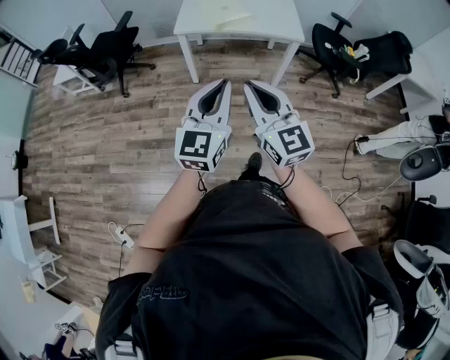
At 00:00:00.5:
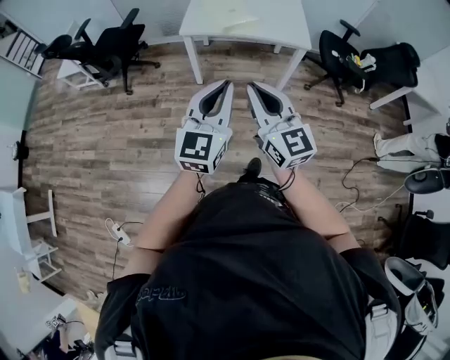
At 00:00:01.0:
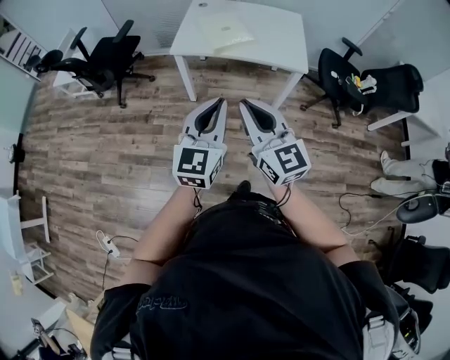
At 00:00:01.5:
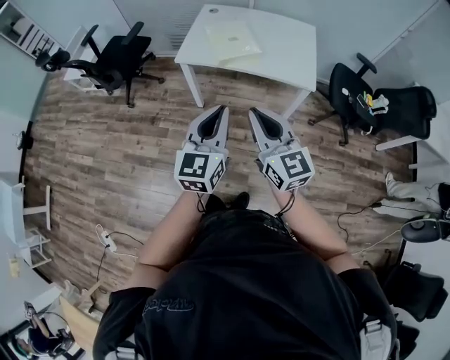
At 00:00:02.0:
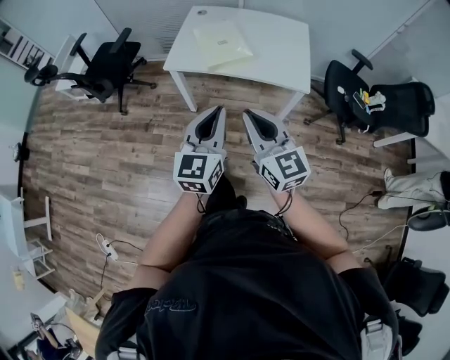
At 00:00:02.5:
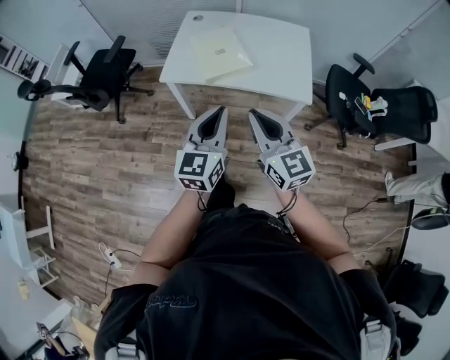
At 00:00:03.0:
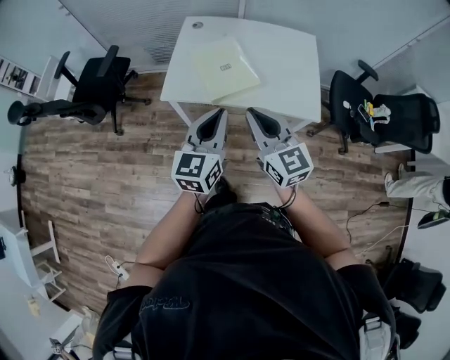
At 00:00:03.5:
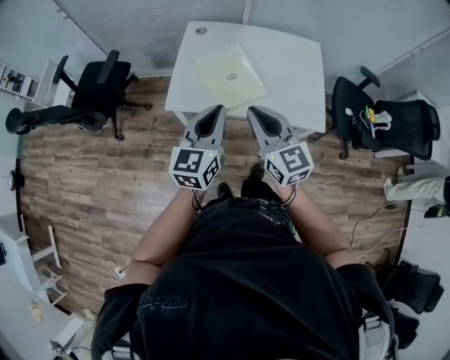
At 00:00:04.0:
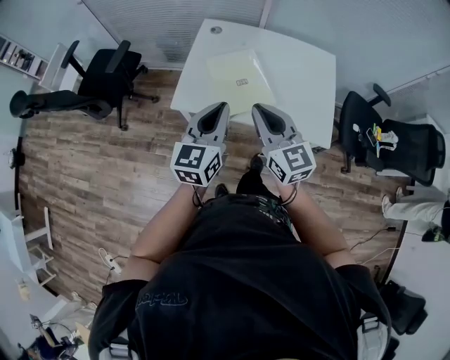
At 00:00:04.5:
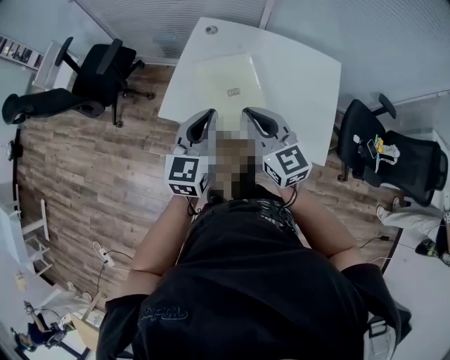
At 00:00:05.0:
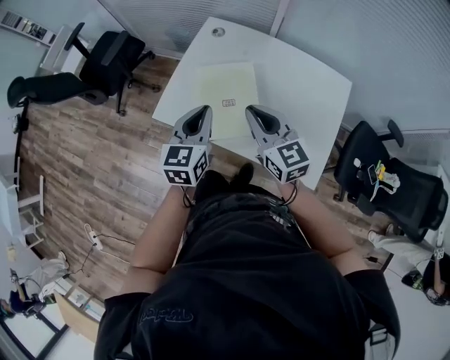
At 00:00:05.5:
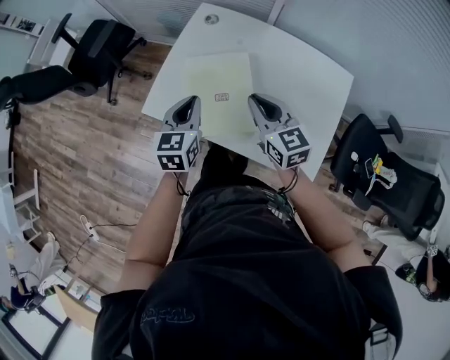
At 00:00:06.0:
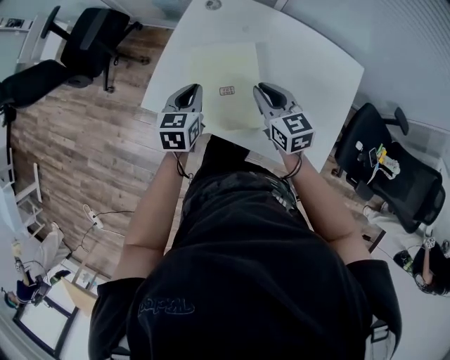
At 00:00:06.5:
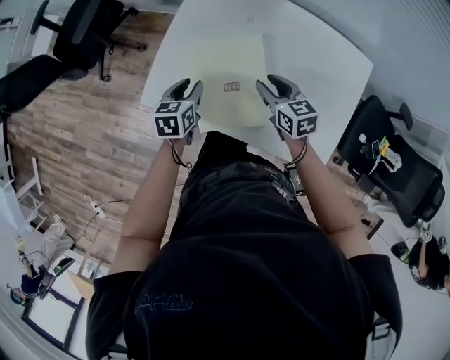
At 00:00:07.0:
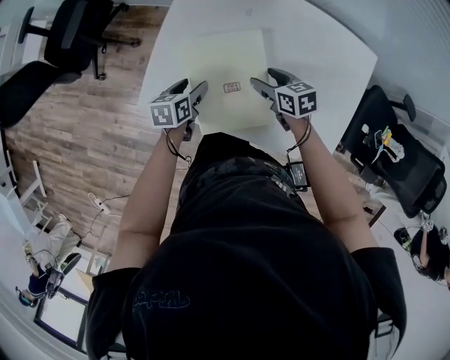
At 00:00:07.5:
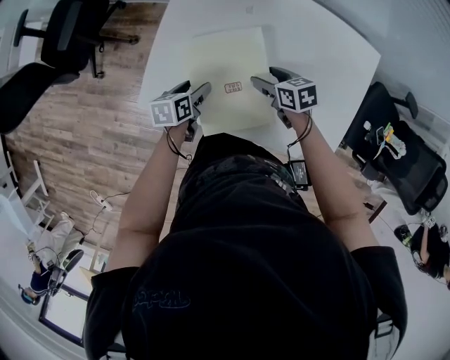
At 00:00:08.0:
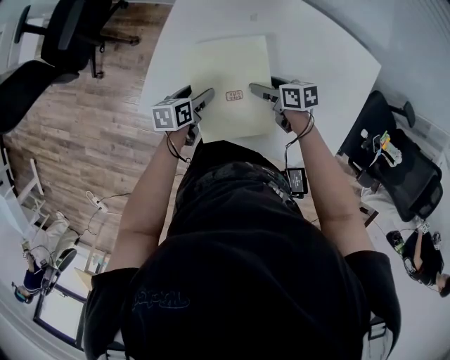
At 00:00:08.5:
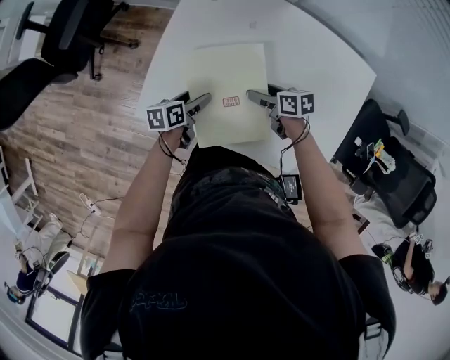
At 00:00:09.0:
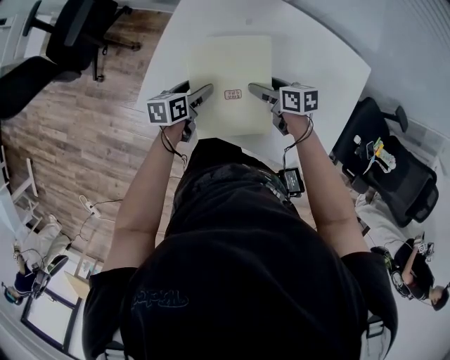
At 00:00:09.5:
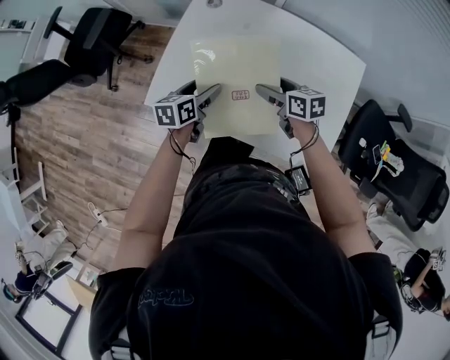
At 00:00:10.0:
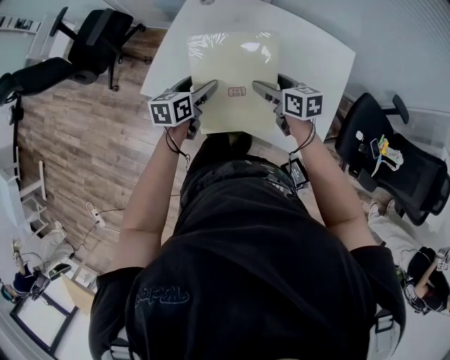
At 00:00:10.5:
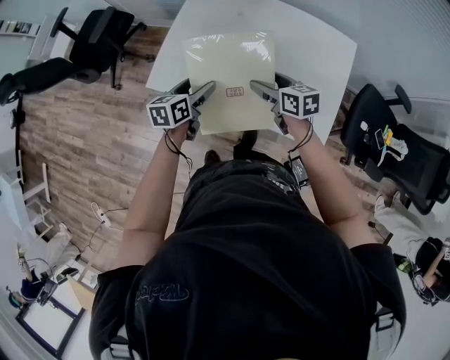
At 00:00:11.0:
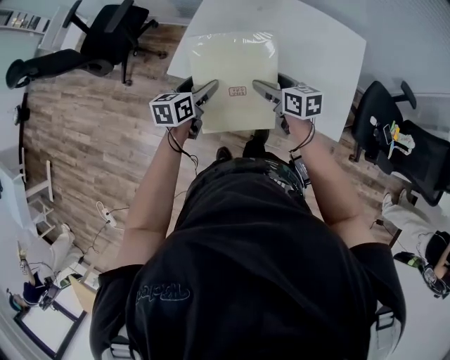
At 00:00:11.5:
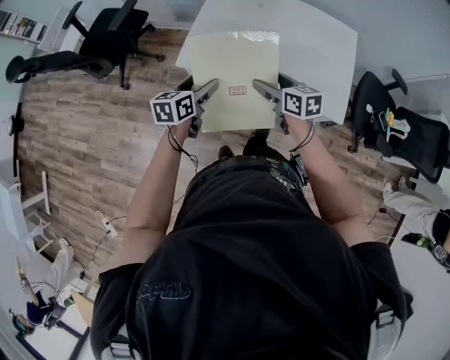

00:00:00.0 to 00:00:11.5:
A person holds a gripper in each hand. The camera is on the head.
00:00:00.0 to 00:00:02.0: The two grippers go some 30 cm forward and to the right.
00:00:02.0 to 00:00:04.0: The two grippers go approximately 30 cm forward.
00:00:04.0 to 00:00:06.0: The right gripper goes about 30 cm forward, downward and to the right, and rotates approximately 30 degrees. Meanwhile the left gripper moves downward and forward, approximately 30 cm, and turns by roughly 30 degrees.
00:00:06.0 to 00:00:07.5: The grippers both shift downward by roughly 15 cm. The left gripper rotates about 30 degrees, and opens. Meanwhile the right gripper rotates roughly 30 degrees, and opens up.
00:00:07.5 to 00:00:09.5: The two grippers go some 10 cm upward.
00:00:09.5 to 00:00:11.5: The grippers both shift backward and to the left by some 25 cm.

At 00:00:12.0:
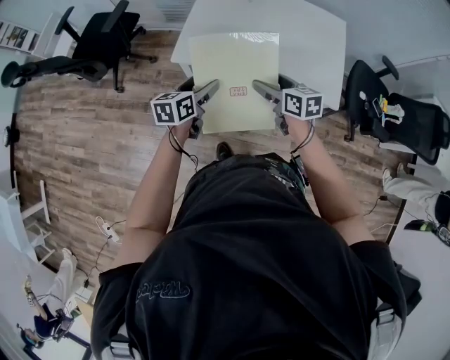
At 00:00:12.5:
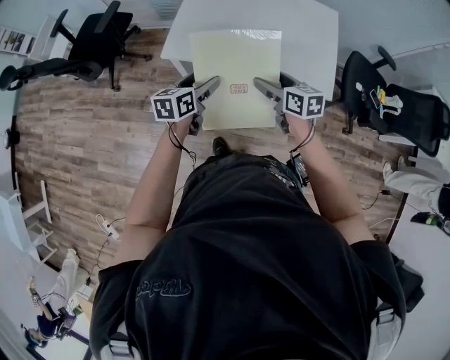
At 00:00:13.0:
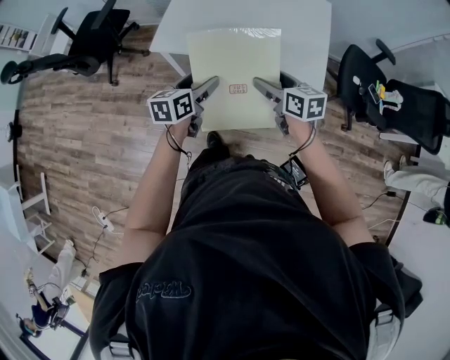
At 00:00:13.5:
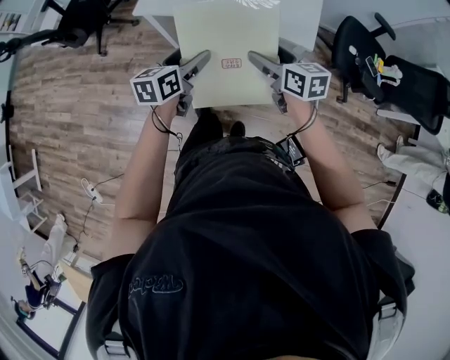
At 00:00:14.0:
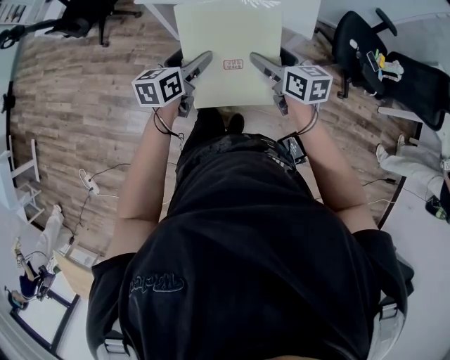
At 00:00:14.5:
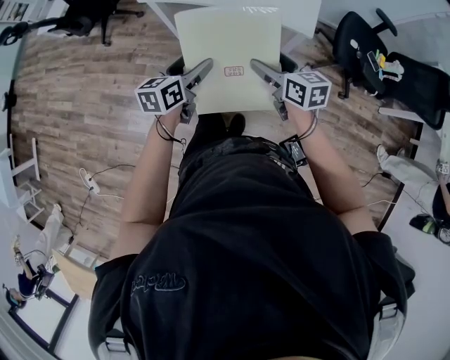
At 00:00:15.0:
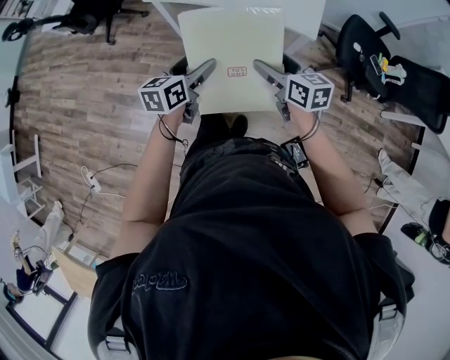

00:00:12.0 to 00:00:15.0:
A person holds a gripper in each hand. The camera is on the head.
00:00:12.0 to 00:00:13.5: Both grippers move to the right and backward, approximately 20 cm.
00:00:13.5 to 00:00:15.0: Both grippers travel together backward, some 10 cm.

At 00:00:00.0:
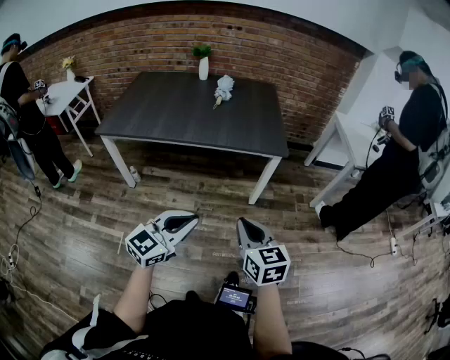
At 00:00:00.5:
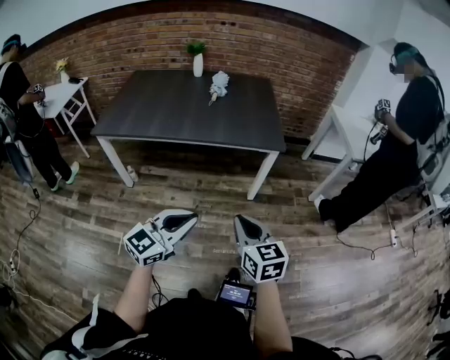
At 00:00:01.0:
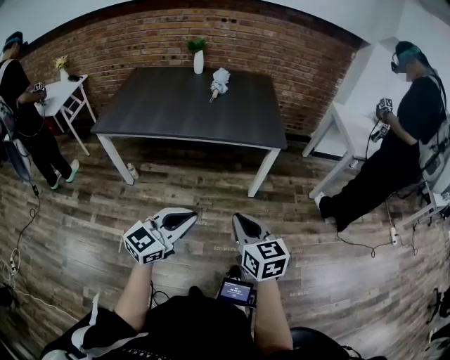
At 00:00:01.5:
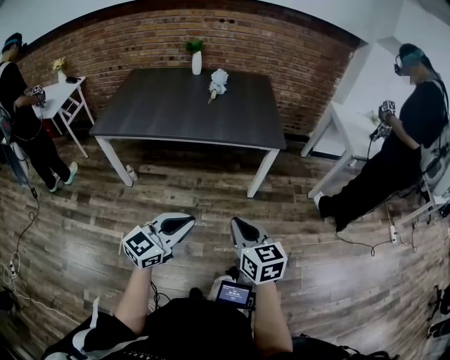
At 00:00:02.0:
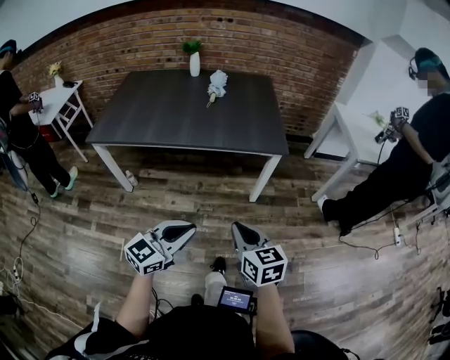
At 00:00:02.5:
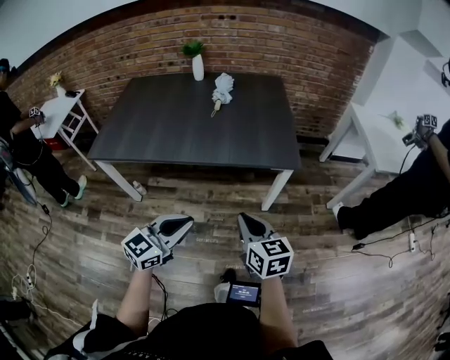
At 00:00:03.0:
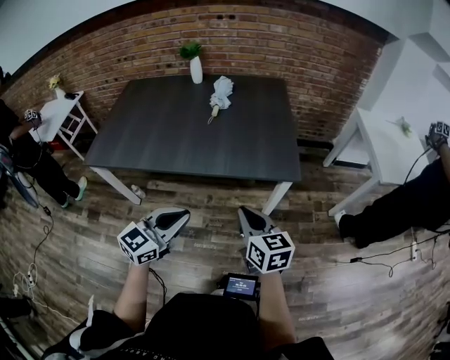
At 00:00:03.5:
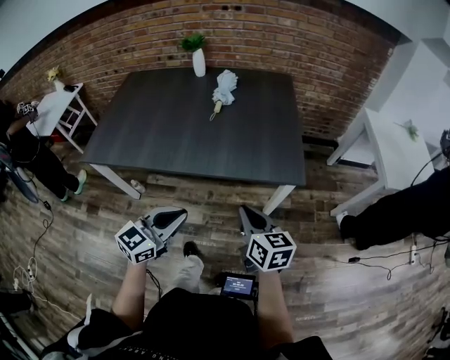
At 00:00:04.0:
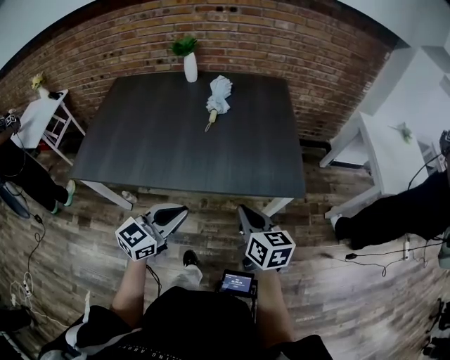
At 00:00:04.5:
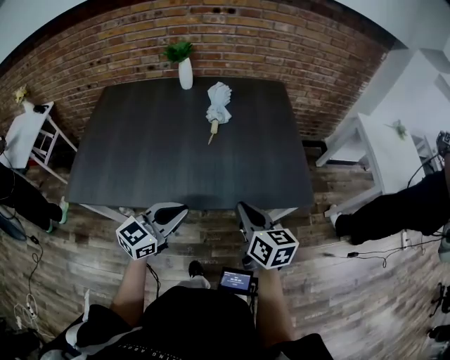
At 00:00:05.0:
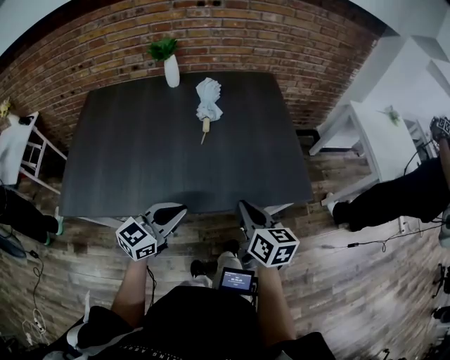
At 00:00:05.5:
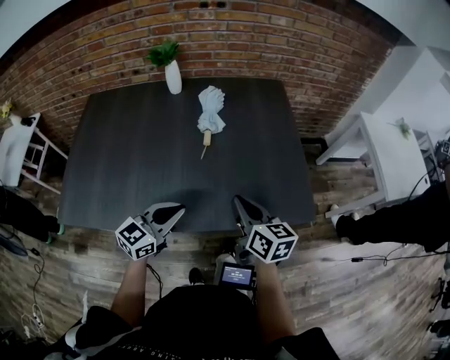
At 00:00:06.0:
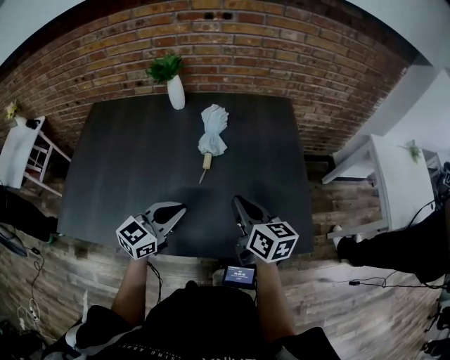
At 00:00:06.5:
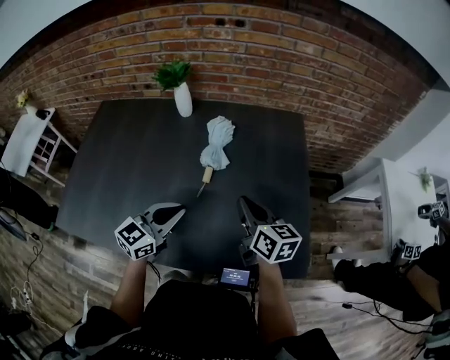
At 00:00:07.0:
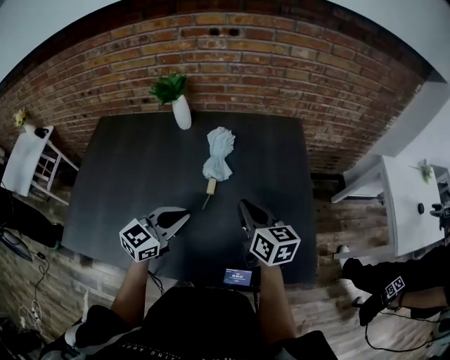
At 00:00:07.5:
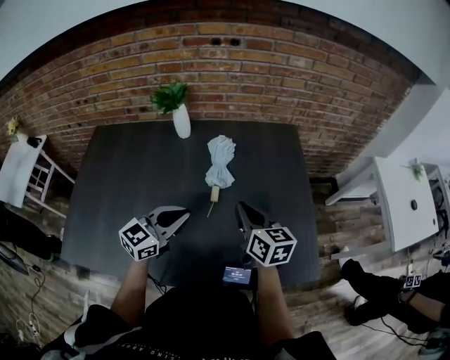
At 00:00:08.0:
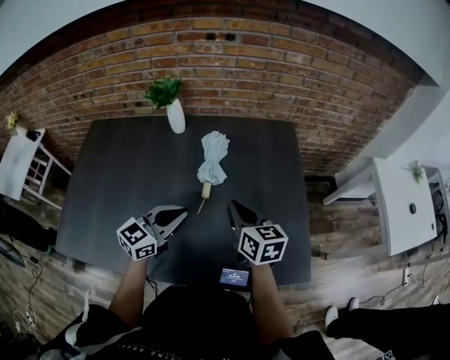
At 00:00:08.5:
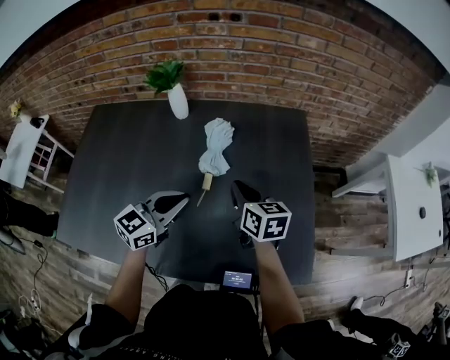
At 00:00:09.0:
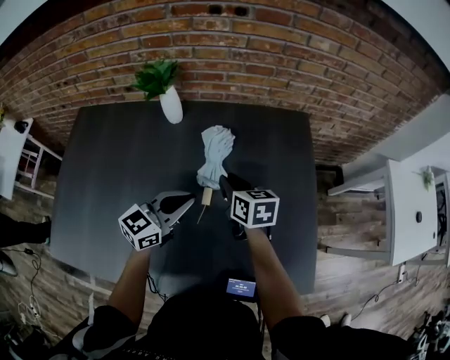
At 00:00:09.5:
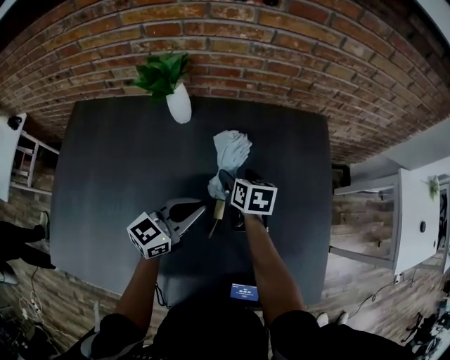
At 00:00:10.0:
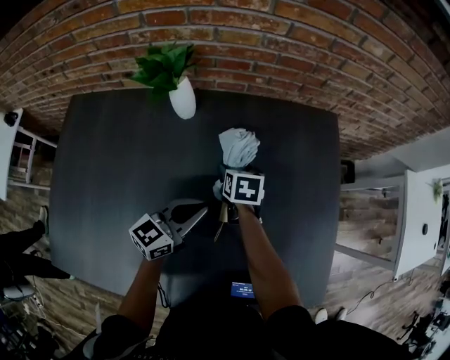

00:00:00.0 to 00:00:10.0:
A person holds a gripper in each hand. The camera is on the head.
00:00:00.0 to 00:00:02.0: The left gripper ends up about 5 cm from where it was. The right gripper ends up some 5 cm from where it was.
00:00:02.0 to 00:00:04.0: Both grippers move forward, some 35 cm.
00:00:04.0 to 00:00:06.0: Both grippers move forward, approximately 25 cm.
00:00:06.0 to 00:00:08.0: The grippers both shift forward by approximately 10 cm.
00:00:08.0 to 00:00:10.0: The right gripper shifts roughly 35 cm forward, downward and to the left, tips its fingers downward by about 30 degrees, and opens. The left gripper is displaced forward and downward by roughly 20 cm.

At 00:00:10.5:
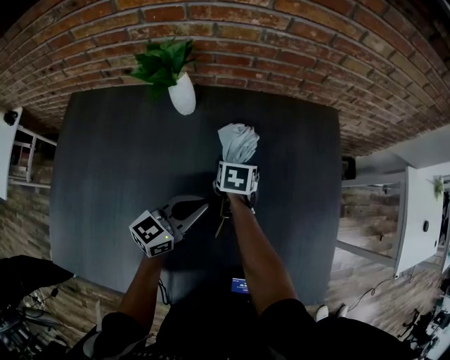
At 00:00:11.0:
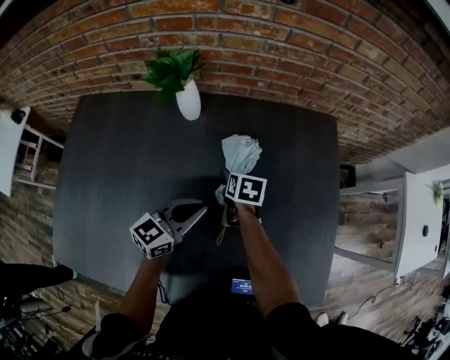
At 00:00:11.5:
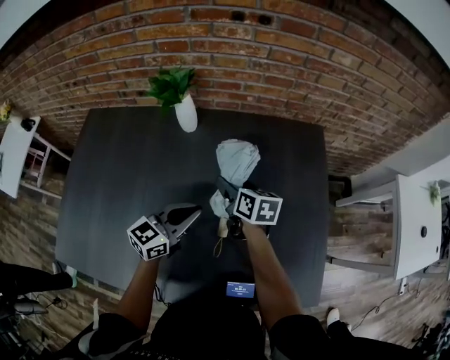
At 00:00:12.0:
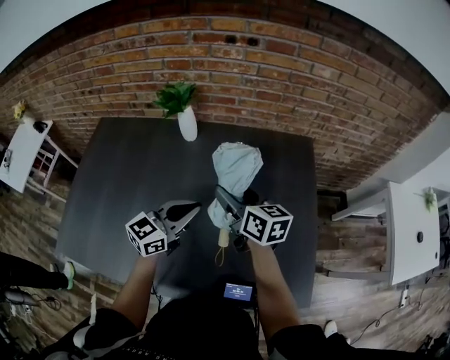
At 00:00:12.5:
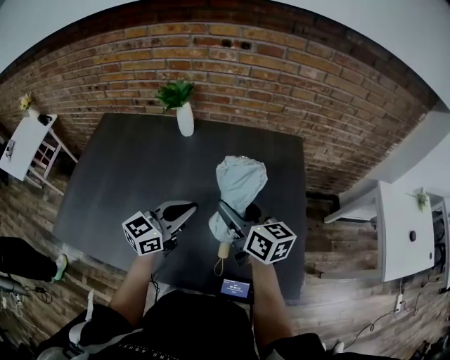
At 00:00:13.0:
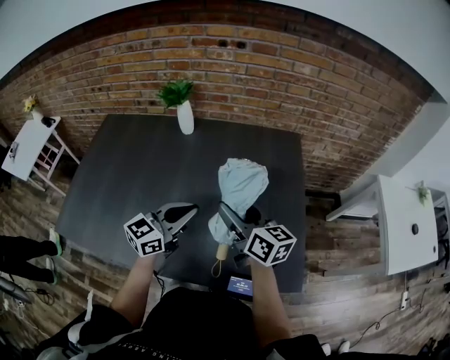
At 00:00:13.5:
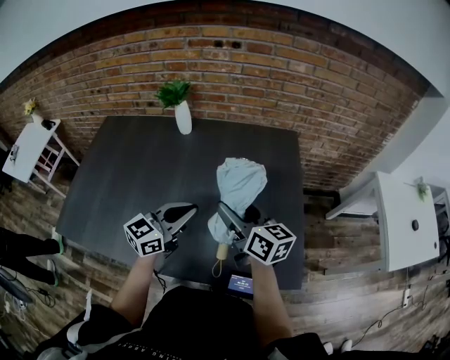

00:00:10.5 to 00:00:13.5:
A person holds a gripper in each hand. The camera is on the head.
00:00:10.5 to 00:00:12.0: The right gripper shifts some 30 cm upward and backward, and points its fingers approximately 40 degrees further upward; the left gripper heads upward and backward, covering approximately 15 cm.
00:00:12.0 to 00:00:13.5: Both grippers move backward and to the right, roughly 15 cm.
